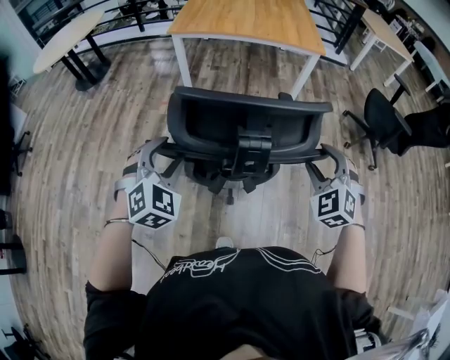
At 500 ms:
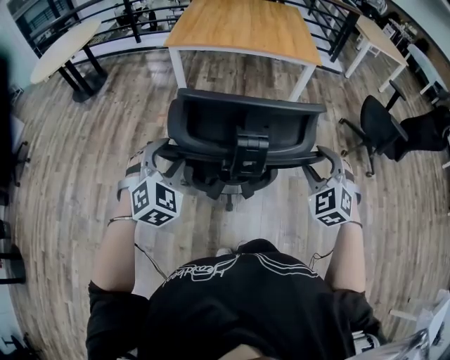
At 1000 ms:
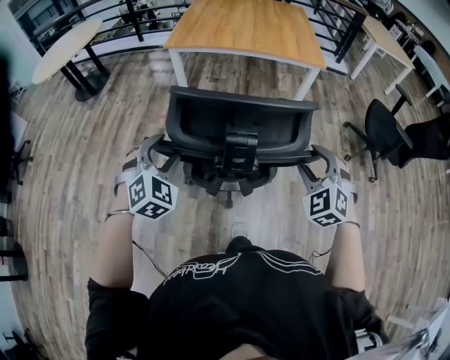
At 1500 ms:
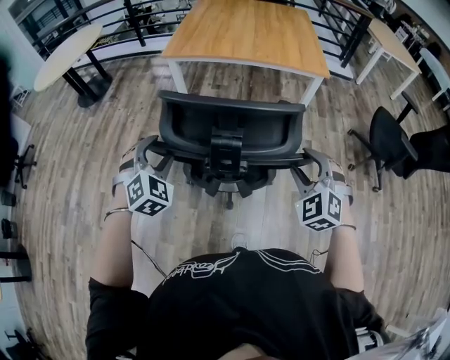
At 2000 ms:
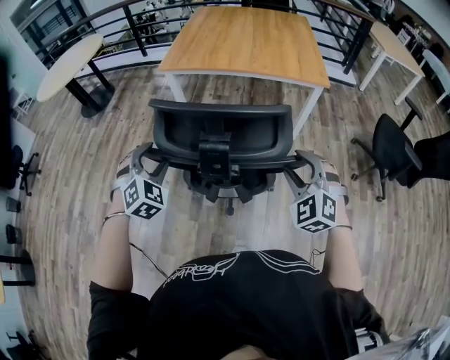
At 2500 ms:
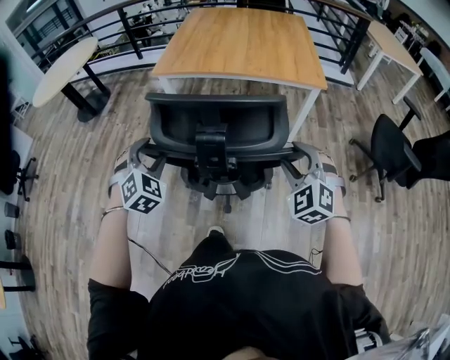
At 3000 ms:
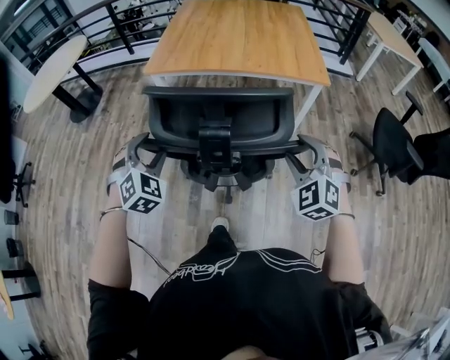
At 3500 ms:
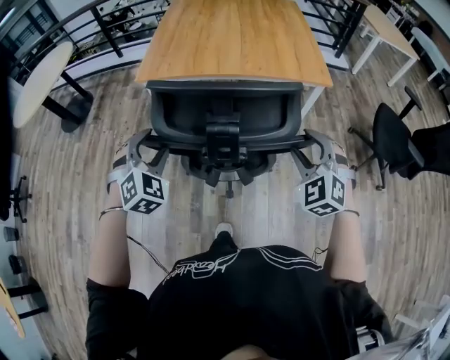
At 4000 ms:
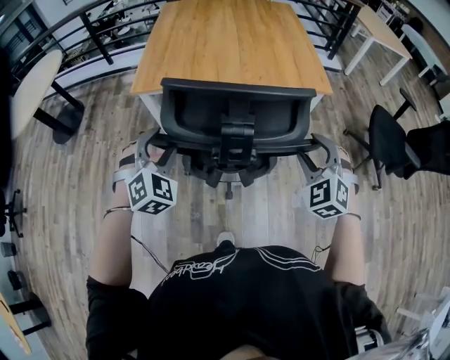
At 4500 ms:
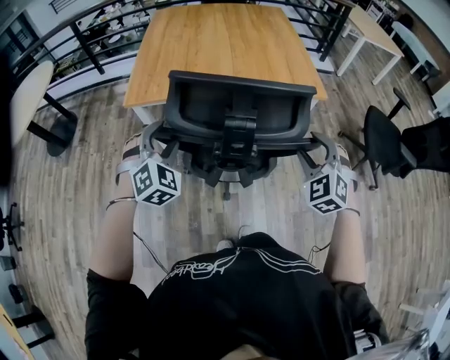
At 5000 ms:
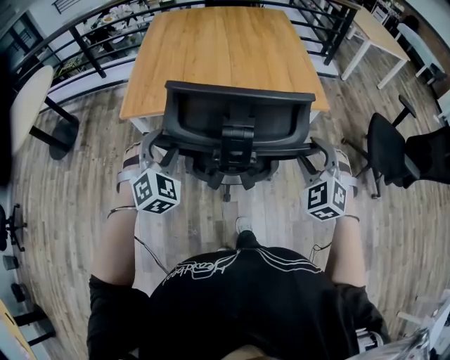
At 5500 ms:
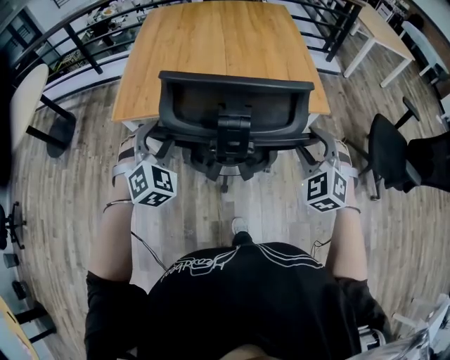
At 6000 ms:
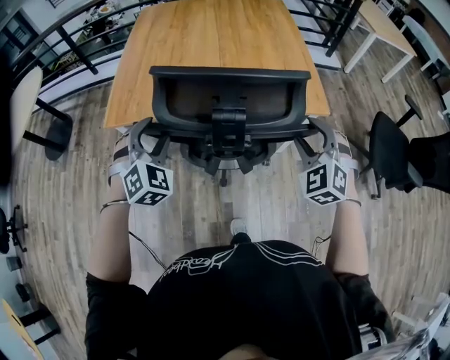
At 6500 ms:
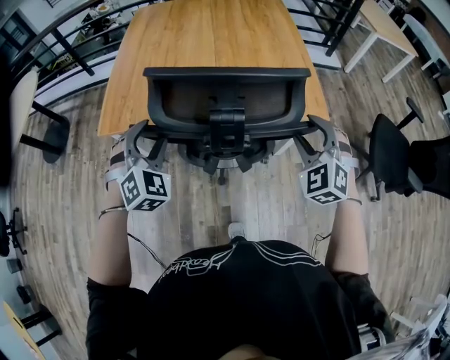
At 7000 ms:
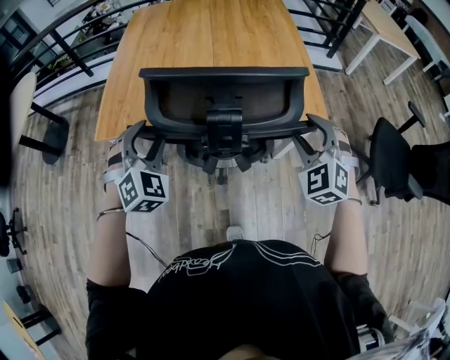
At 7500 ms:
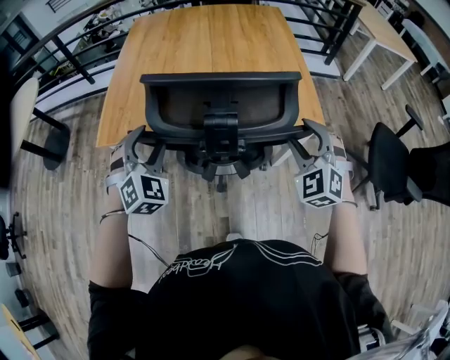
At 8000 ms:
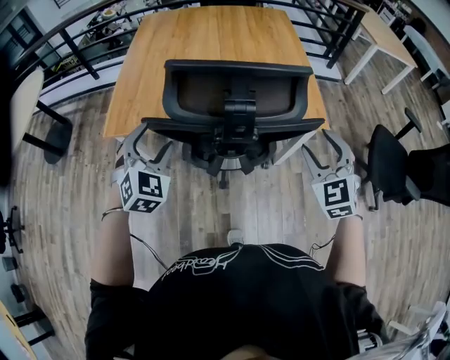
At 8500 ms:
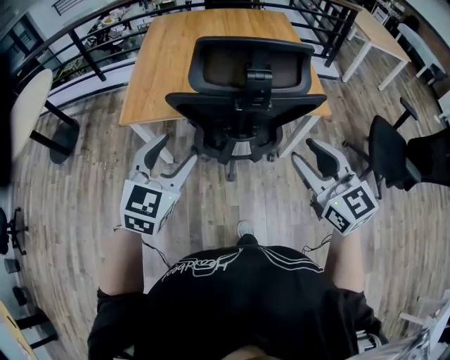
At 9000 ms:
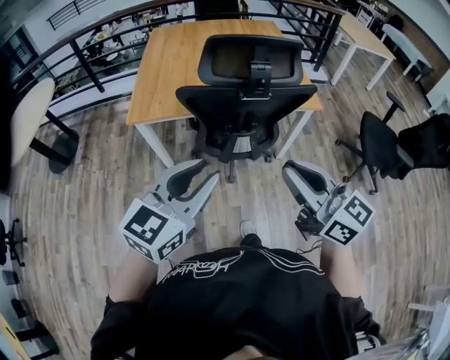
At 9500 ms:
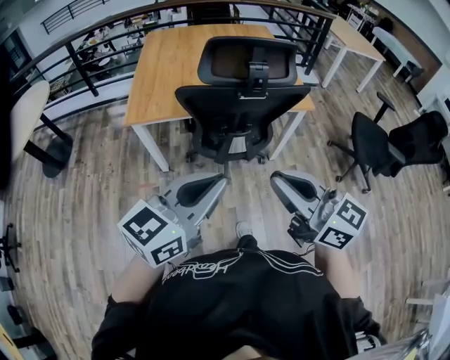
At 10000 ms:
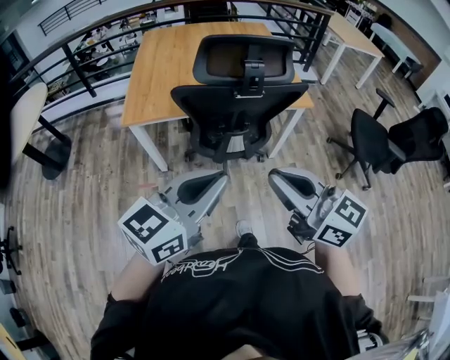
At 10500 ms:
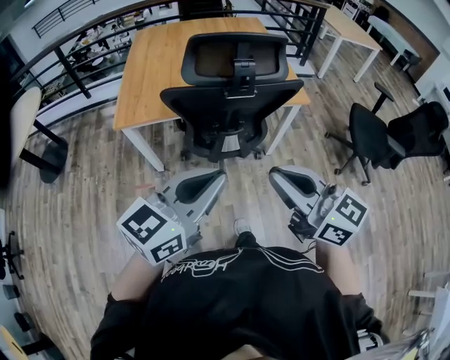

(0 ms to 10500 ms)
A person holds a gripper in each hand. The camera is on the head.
0 ms - 2000 ms: Both grippers travel together forward, about 25 cm.
2000 ms - 4000 ms: Both grippers travel together forward, roughly 30 cm.
4000 ms - 6500 ms: Both grippers travel together forward, approximately 25 cm.
6500 ms - 8500 ms: The right gripper goes some 25 cm backward, to the left and upward, and rolls clockwise, seen from behind, by roughly 40 degrees, while the left gripper heads backward and upward, covering about 20 cm, and changes its angle by about 40 degrees.
8500 ms - 10500 ms: The right gripper moves backward and to the left, approximately 20 cm, turns by approximately 20 degrees, and closes its fingers, while the left gripper goes roughly 20 cm backward and to the right, swivels about 40 degrees, and closes.

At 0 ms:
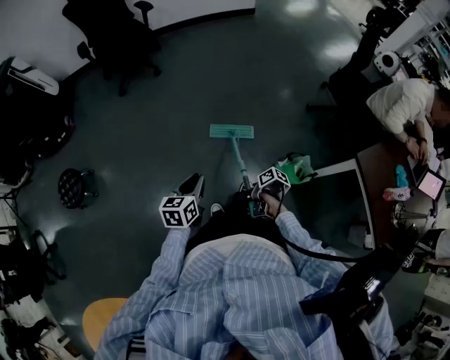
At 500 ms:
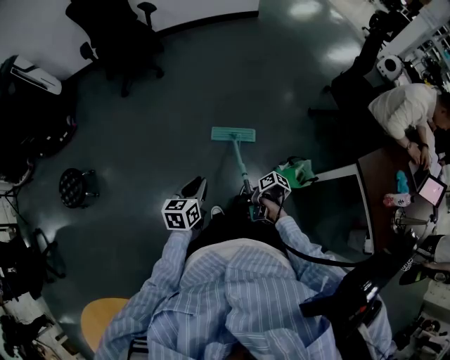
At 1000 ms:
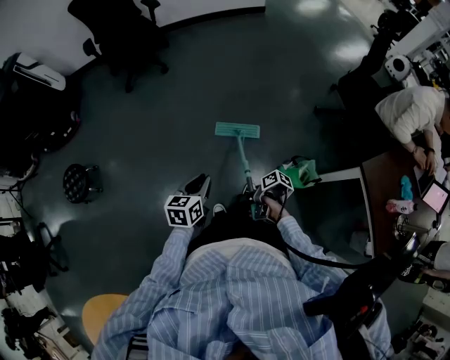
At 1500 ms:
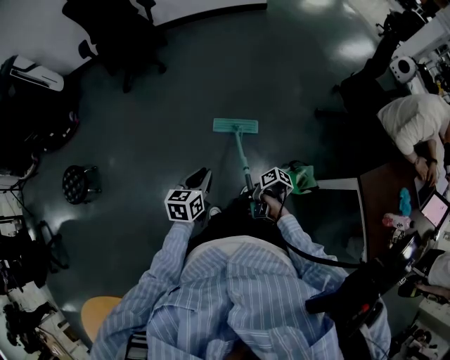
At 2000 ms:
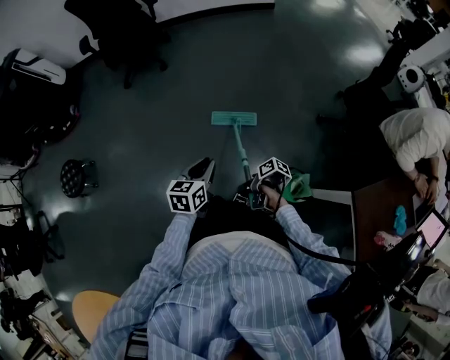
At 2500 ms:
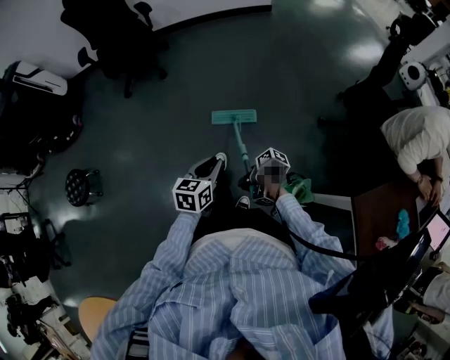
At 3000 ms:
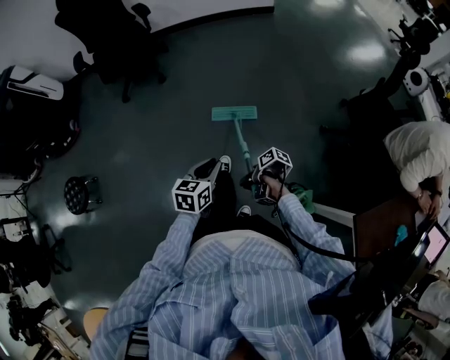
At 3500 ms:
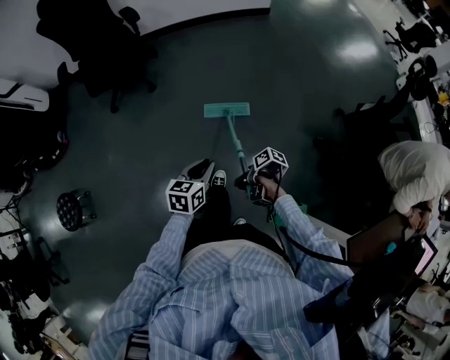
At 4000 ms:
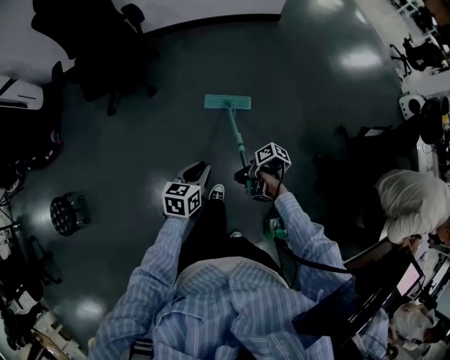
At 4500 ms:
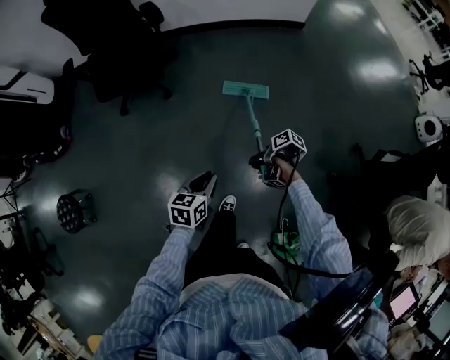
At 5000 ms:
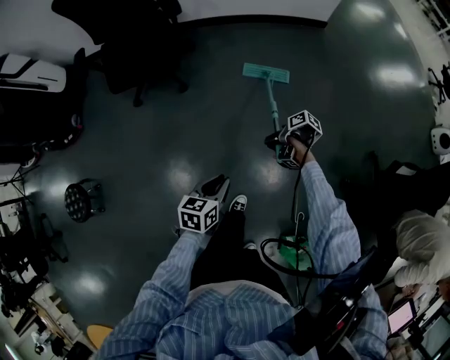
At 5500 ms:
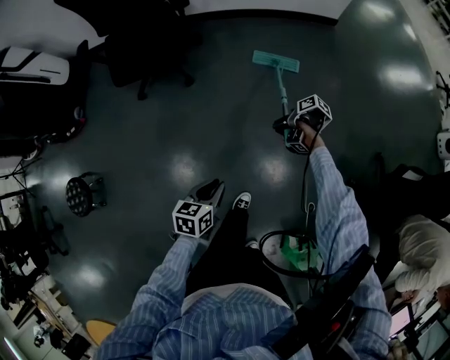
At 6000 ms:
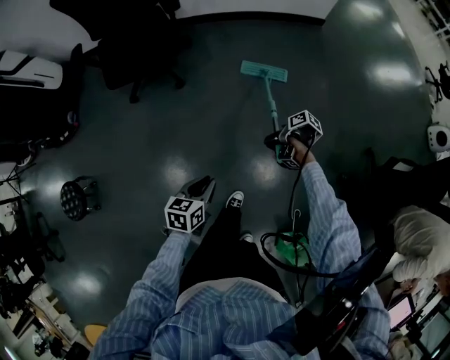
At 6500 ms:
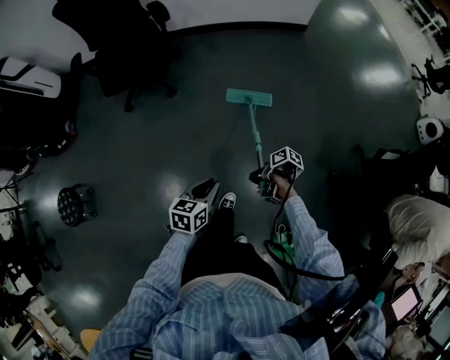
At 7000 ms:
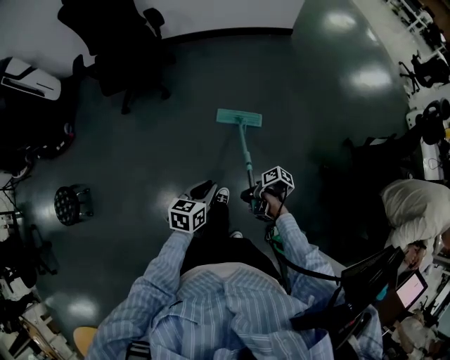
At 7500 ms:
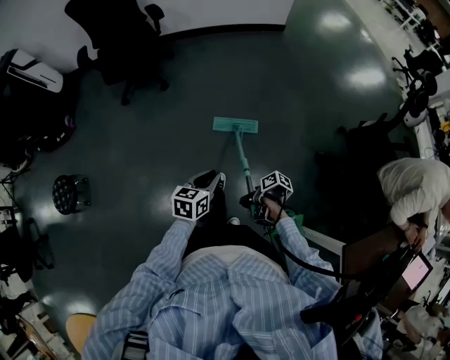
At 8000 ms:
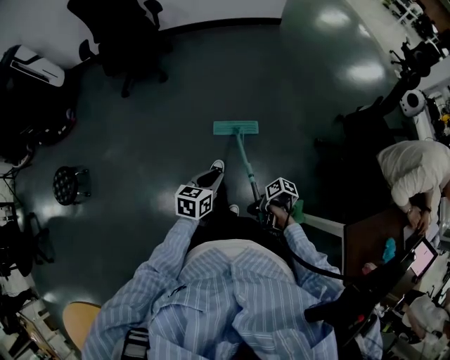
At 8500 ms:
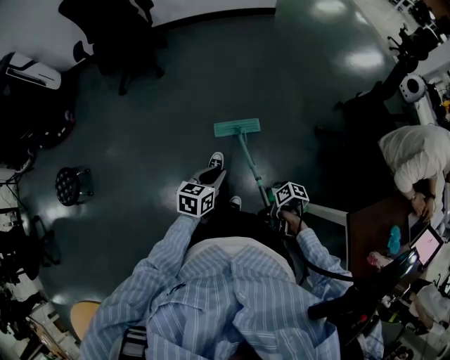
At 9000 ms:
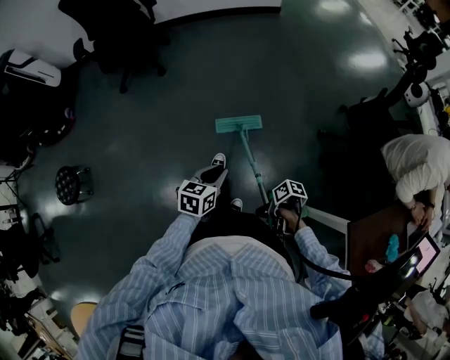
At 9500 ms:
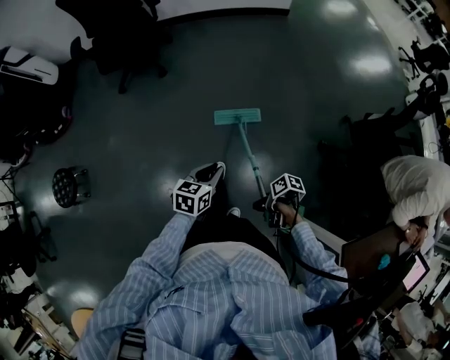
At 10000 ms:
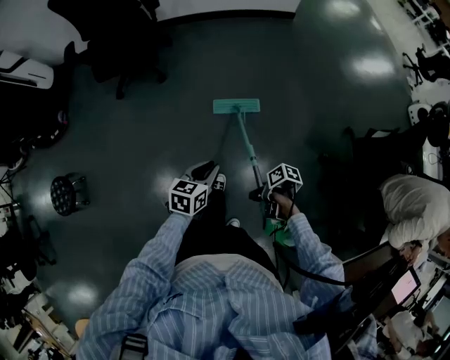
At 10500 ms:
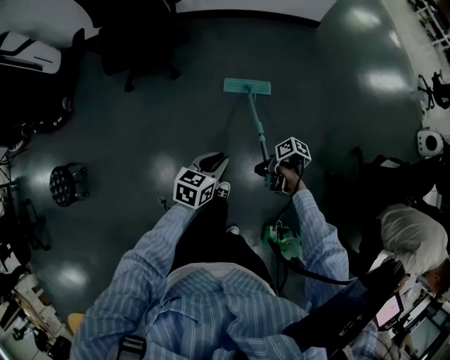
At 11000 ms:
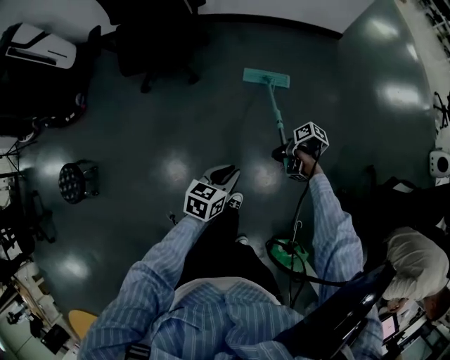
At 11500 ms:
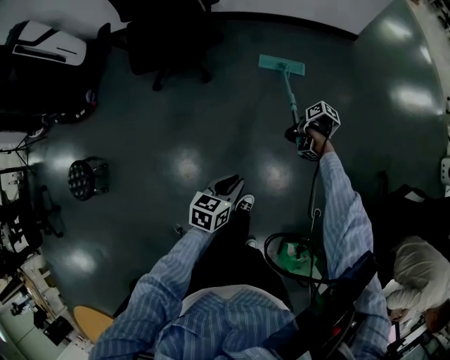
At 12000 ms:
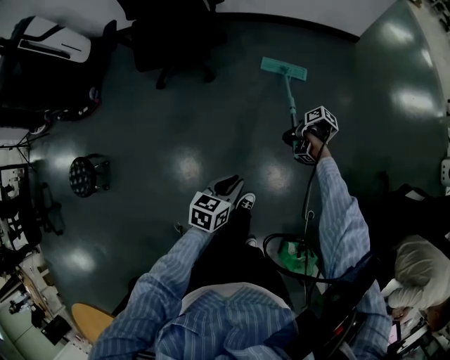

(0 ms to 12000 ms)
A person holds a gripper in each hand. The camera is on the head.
0 ms - 2000 ms: The left gripper changes place by approximately 20 cm.
2000 ms - 4000 ms: The left gripper moves approximately 35 cm.
4000 ms - 6000 ms: The left gripper moves about 10 cm.
6000 ms - 8000 ms: The left gripper ends up some 35 cm from where it was.
8000 ms - 10000 ms: The left gripper moves some 25 cm.
10000 ms - 12000 ms: The left gripper changes place by approximately 15 cm.

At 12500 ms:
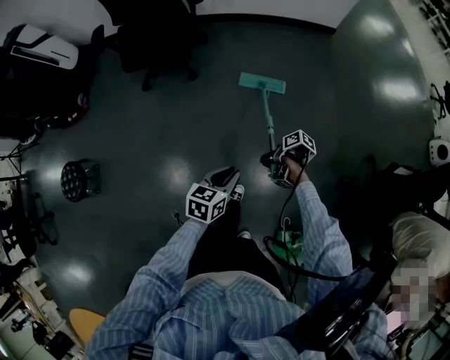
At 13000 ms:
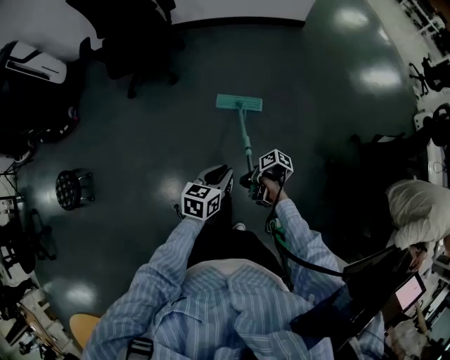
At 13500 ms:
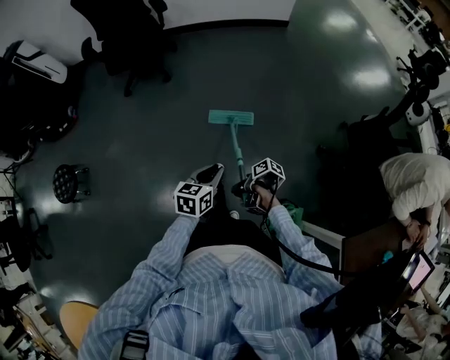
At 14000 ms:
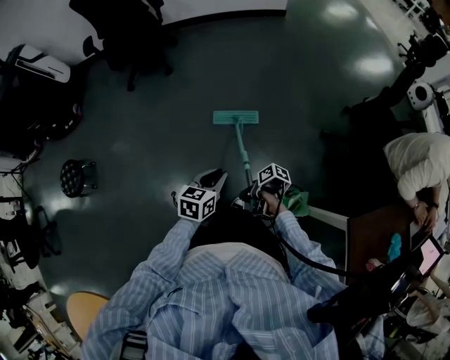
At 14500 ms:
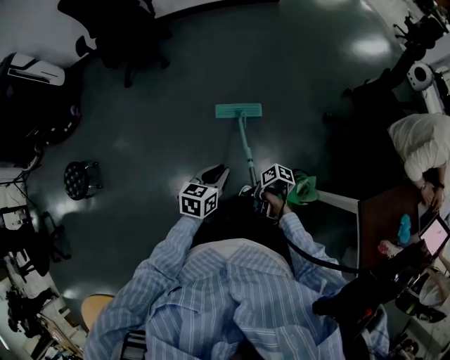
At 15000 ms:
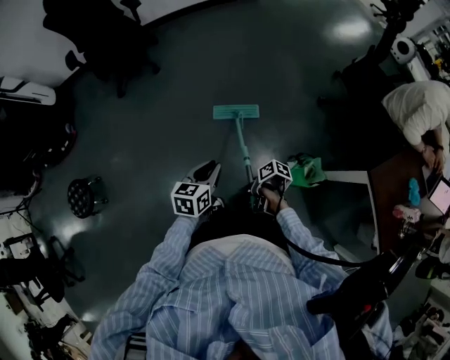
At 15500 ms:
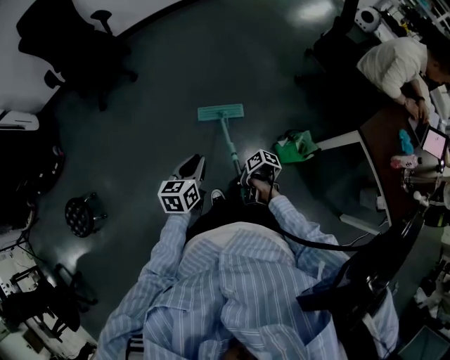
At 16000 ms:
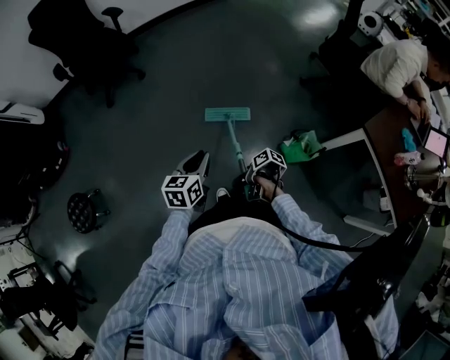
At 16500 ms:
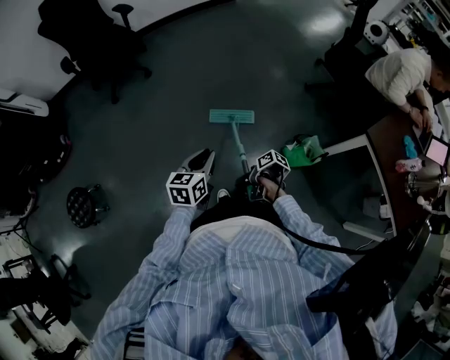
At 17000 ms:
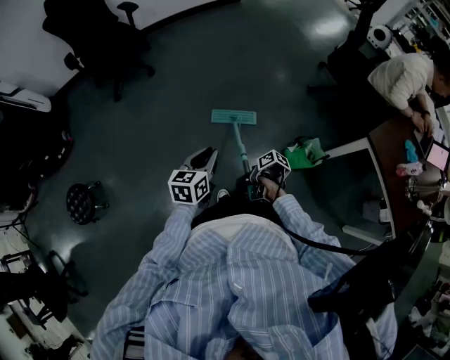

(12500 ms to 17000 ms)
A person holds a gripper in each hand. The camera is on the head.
12500 ms - 14500 ms: The left gripper shifts by some 35 cm.
14500 ms - 17000 ms: The left gripper shifts by some 20 cm.
